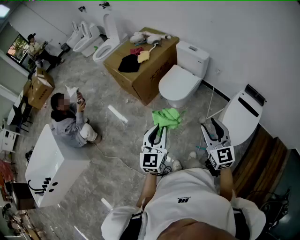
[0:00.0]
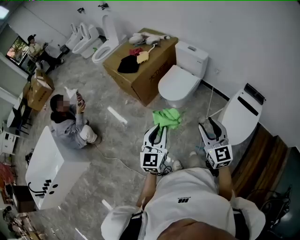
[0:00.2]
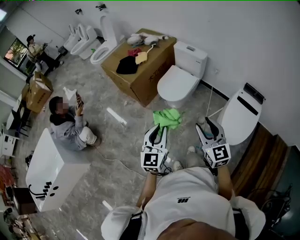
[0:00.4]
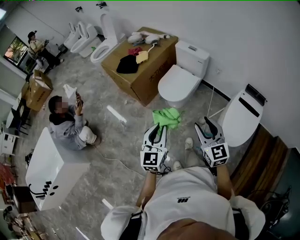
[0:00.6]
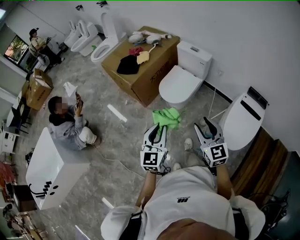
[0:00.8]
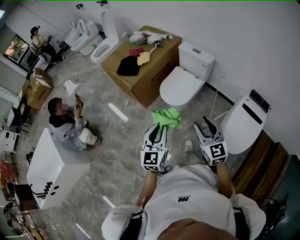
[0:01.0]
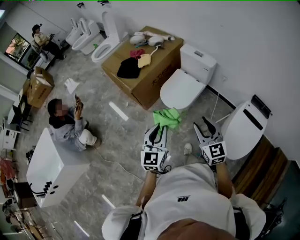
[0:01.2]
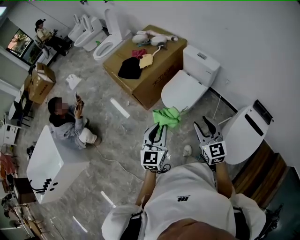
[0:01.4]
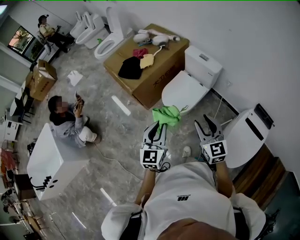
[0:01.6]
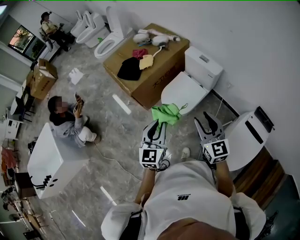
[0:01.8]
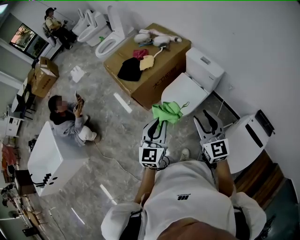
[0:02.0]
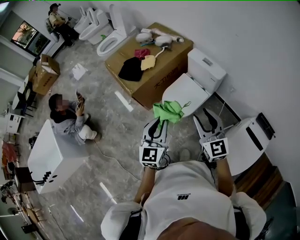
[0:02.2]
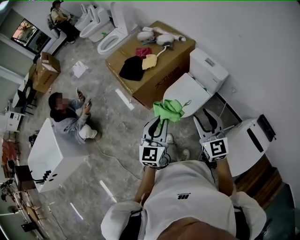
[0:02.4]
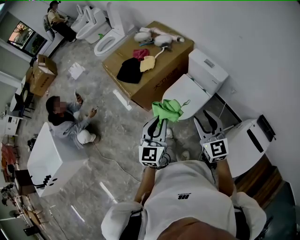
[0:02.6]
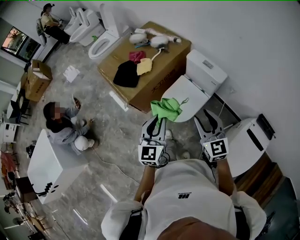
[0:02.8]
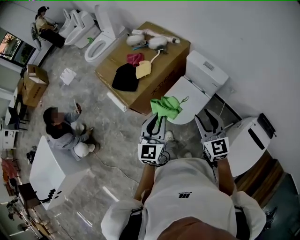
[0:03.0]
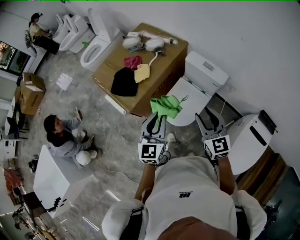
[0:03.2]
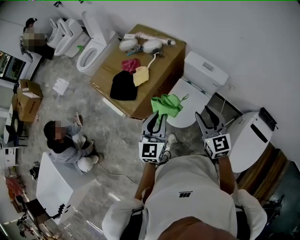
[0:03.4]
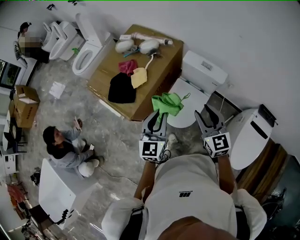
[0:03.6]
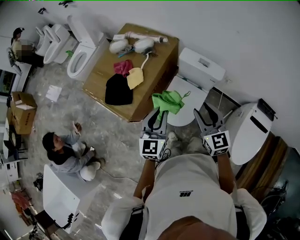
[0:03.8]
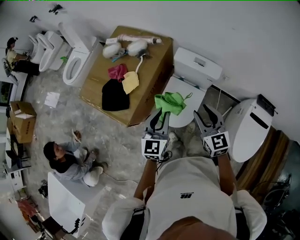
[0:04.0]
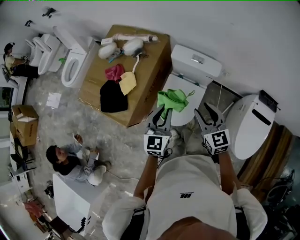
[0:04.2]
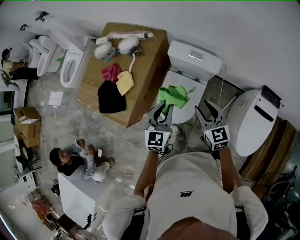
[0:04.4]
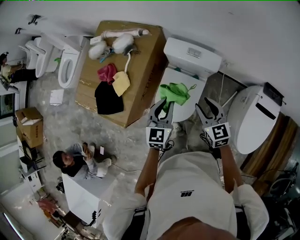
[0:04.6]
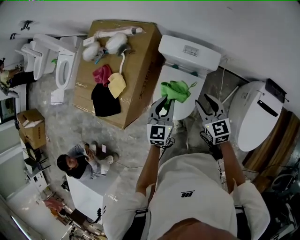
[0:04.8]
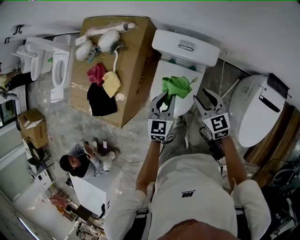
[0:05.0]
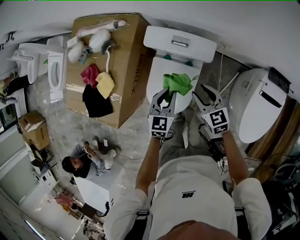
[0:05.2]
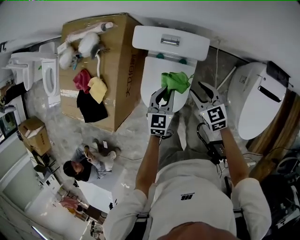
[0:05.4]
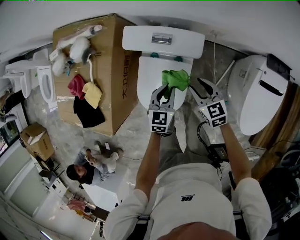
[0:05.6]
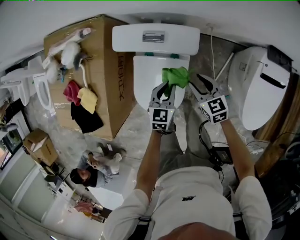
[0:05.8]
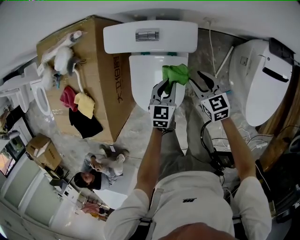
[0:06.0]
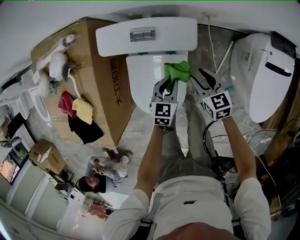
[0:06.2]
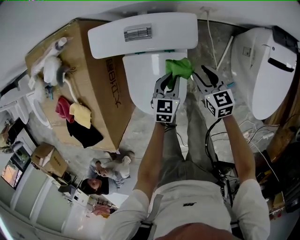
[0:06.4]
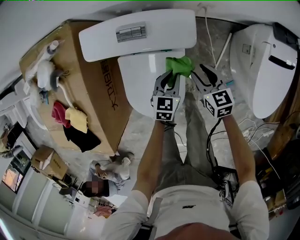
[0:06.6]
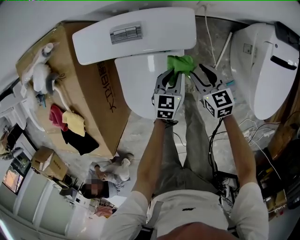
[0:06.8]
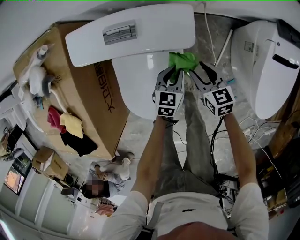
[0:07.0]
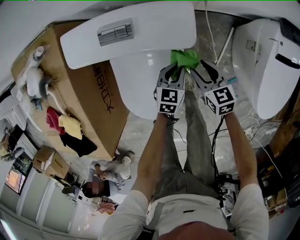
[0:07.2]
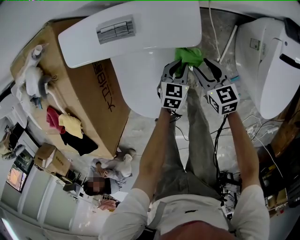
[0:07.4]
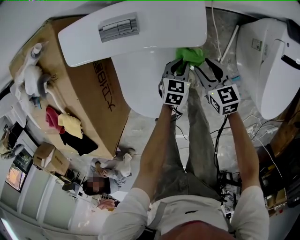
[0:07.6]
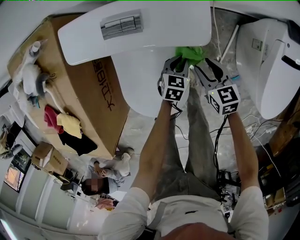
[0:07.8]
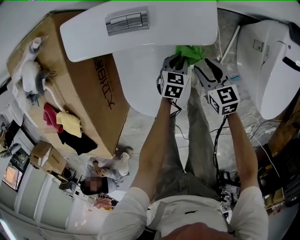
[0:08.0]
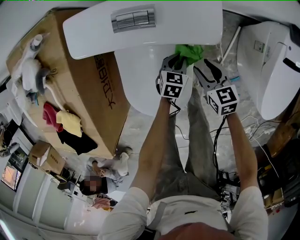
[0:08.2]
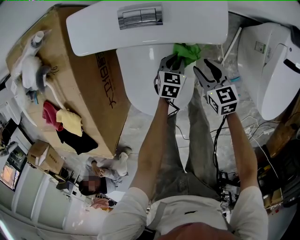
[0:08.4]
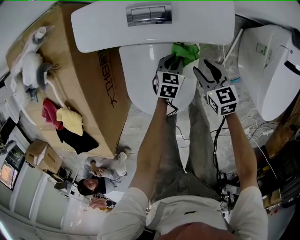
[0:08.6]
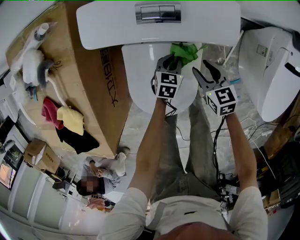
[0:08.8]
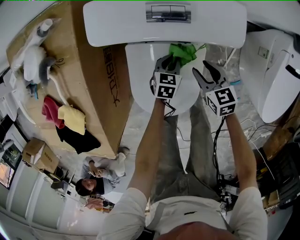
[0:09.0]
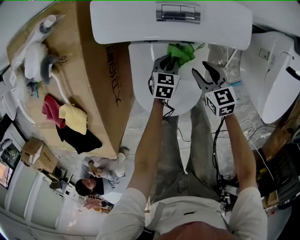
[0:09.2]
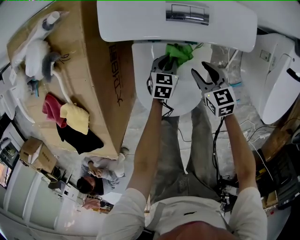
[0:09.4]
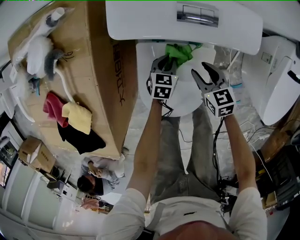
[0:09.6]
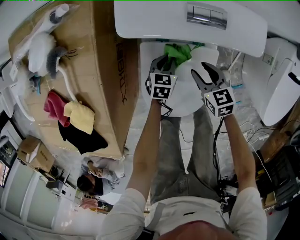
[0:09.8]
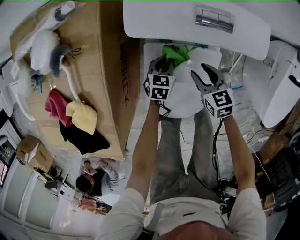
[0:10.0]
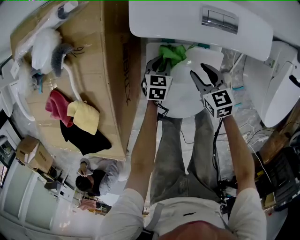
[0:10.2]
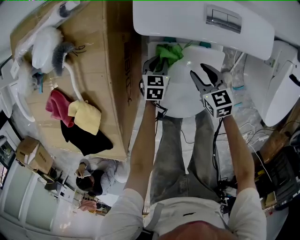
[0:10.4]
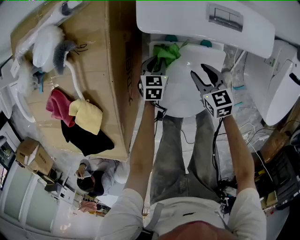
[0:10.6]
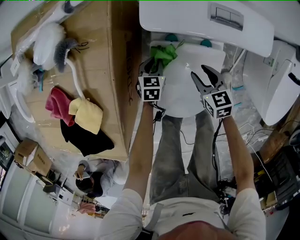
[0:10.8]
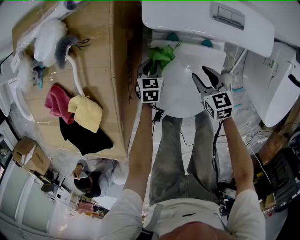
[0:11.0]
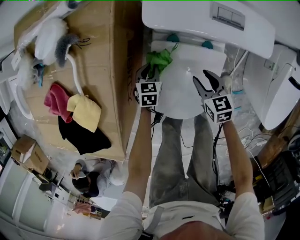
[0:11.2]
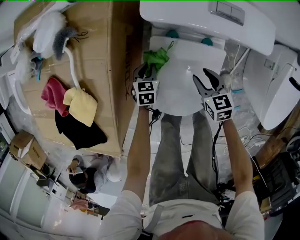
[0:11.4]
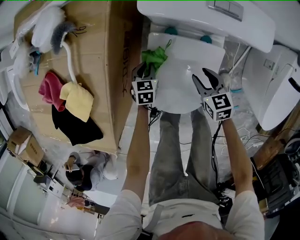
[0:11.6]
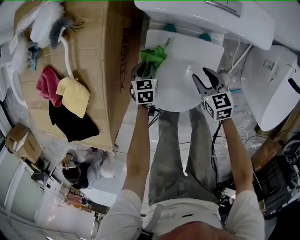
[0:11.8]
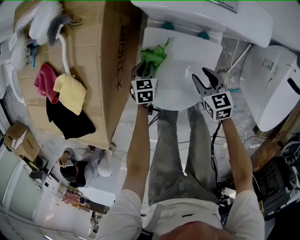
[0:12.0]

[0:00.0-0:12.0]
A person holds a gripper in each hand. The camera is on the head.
0:00.0 to 0:01.6: The two grippers go some 25 cm forward.
0:01.6 to 0:03.0: The two grippers go some 20 cm forward.
0:03.0 to 0:04.4: Both grippers travel together forward and downward, about 20 cm. The left gripper changes its angle by some 20 degrees, while the right gripper rotates about 20 degrees.
0:04.4 to 0:06.0: Both grippers move downward and to the right, about 35 cm. The right gripper changes its angle by some 20 degrees; the left gripper rotates approximately 30 degrees.
0:06.0 to 0:07.6: The two grippers go about 20 cm downward.
0:07.6 to 0:09.0: The grippers both shift to the left by approximately 10 cm.
0:09.0 to 0:10.4: Both grippers move to the left, approximately 15 cm.
0:10.4 to 0:12.0: The left gripper travels backward and to the left by some 10 cm, while the right gripper shifts approximately 5 cm backward.

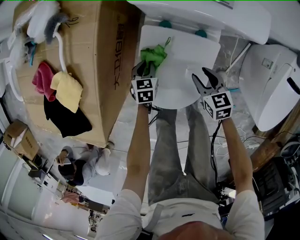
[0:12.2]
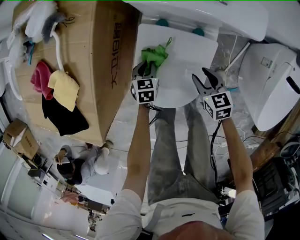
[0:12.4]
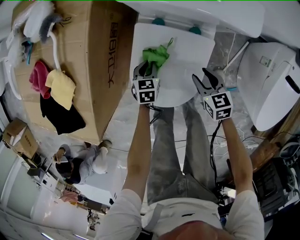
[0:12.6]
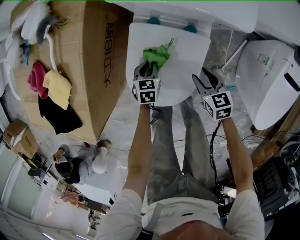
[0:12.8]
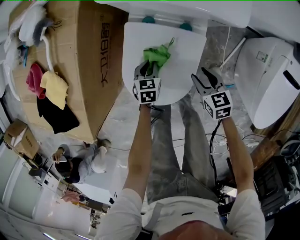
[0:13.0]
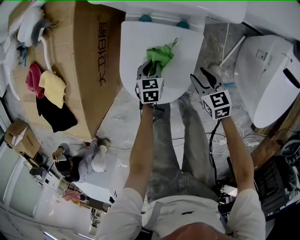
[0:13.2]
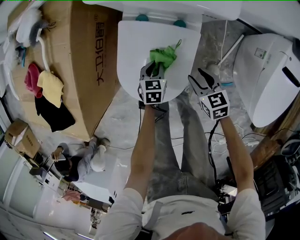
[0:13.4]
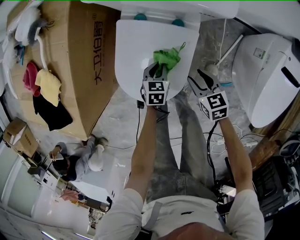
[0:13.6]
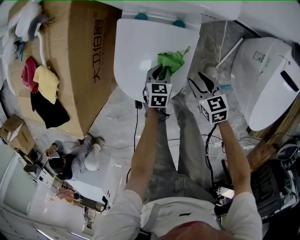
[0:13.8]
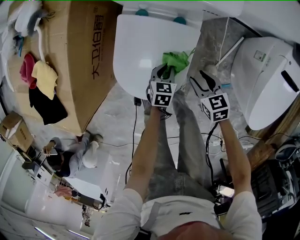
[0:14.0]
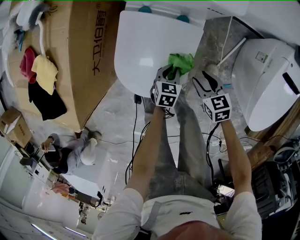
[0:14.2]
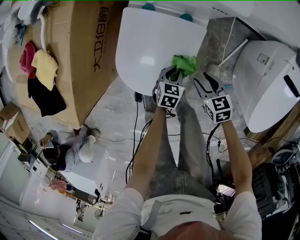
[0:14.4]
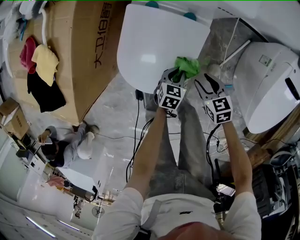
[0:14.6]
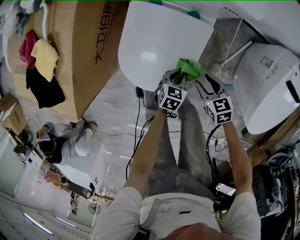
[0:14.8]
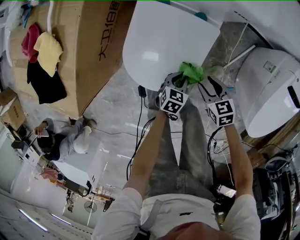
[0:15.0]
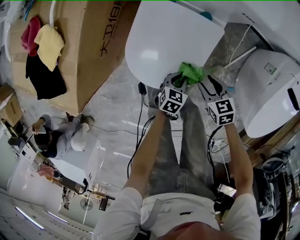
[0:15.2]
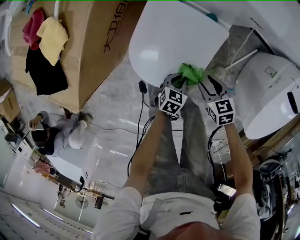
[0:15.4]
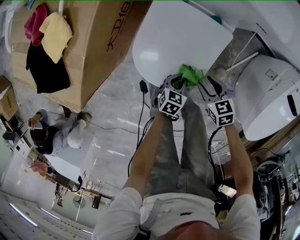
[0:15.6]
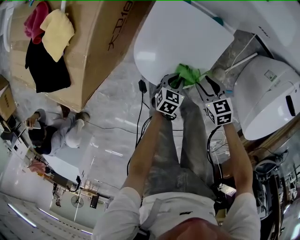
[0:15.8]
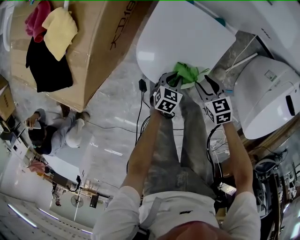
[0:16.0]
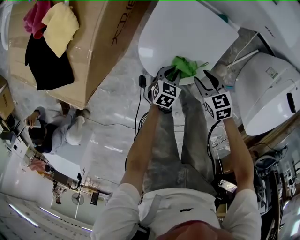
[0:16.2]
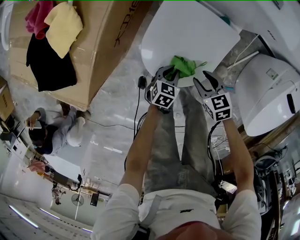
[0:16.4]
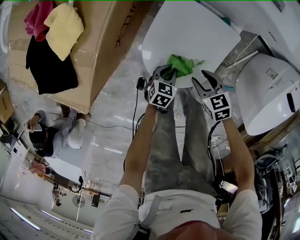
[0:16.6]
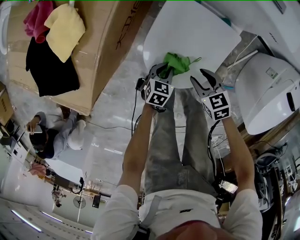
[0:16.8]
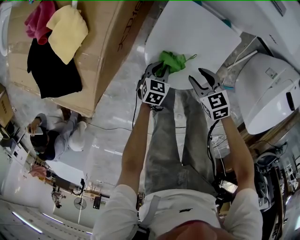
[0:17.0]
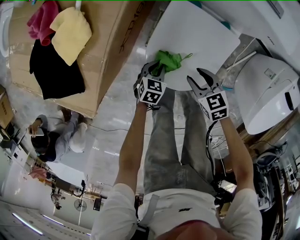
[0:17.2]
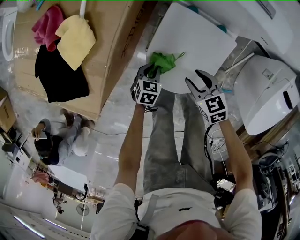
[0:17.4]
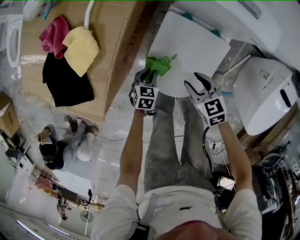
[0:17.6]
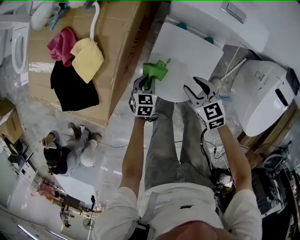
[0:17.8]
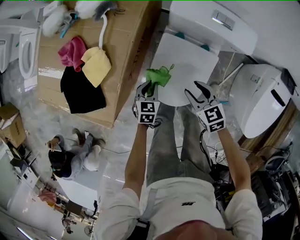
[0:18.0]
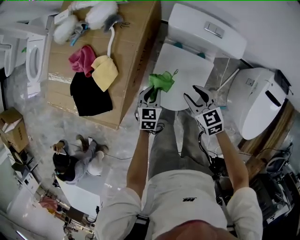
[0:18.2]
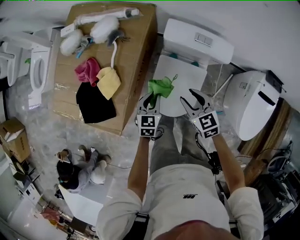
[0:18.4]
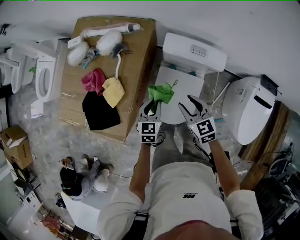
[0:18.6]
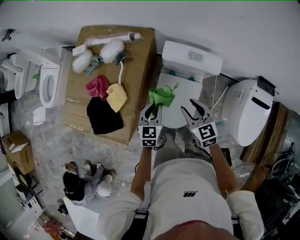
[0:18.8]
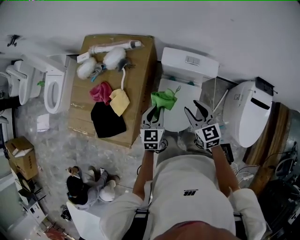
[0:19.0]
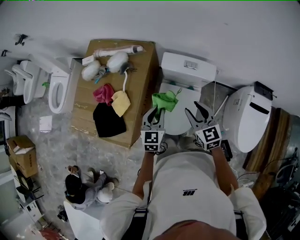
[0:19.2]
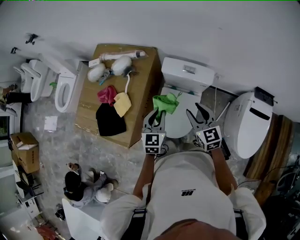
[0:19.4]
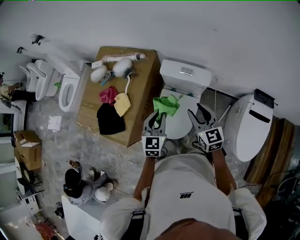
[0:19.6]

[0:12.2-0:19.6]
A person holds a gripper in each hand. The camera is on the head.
0:12.2 to 0:13.6: The left gripper heads to the right and backward, covering about 15 cm. Meanwhile the right gripper travels to the right and backward by some 10 cm.
0:13.6 to 0:15.2: The right gripper moves backward, approximately 5 cm. Meanwhile the left gripper moves backward, about 10 cm.
0:15.2 to 0:16.6: Both grippers move to the left, approximately 10 cm.
0:16.6 to 0:18.2: The grippers both shift upward and forward by about 25 cm.
0:18.2 to 0:19.6: The left gripper moves upward, some 35 cm, and swivels roughly 30 degrees, while the right gripper travels upward and to the right by about 30 cm, and changes its angle by some 30 degrees.

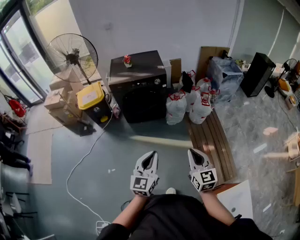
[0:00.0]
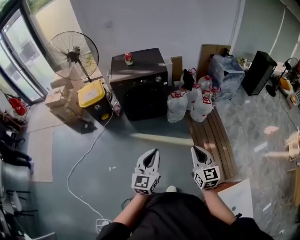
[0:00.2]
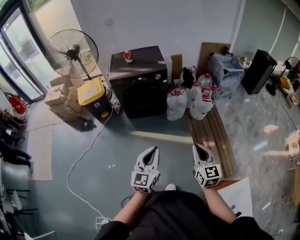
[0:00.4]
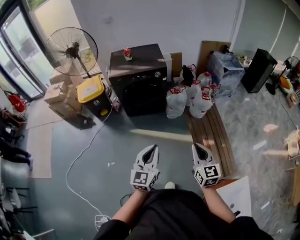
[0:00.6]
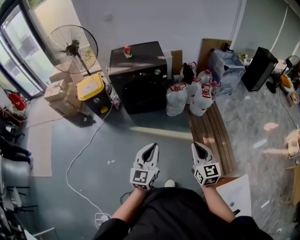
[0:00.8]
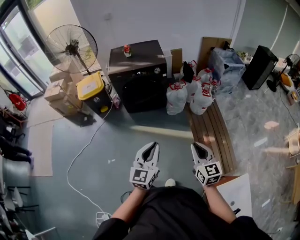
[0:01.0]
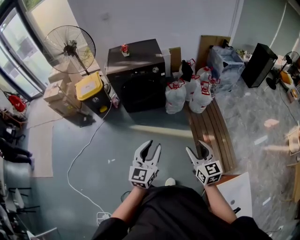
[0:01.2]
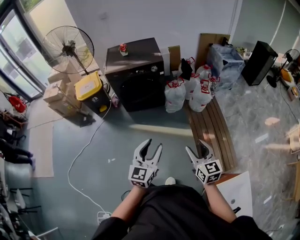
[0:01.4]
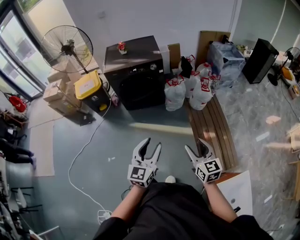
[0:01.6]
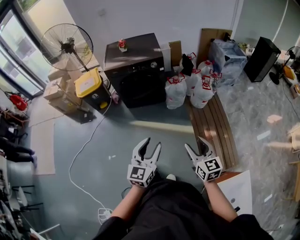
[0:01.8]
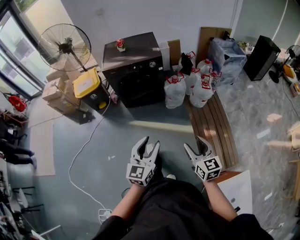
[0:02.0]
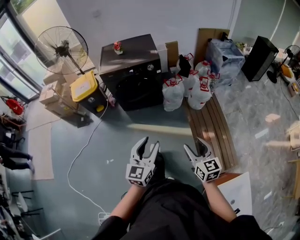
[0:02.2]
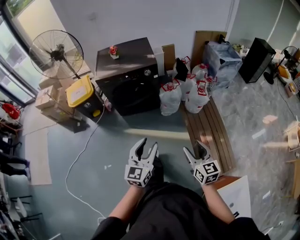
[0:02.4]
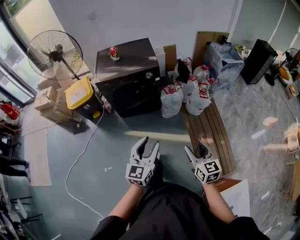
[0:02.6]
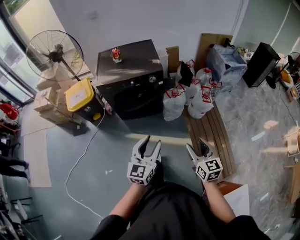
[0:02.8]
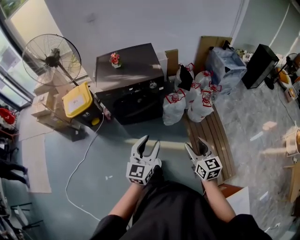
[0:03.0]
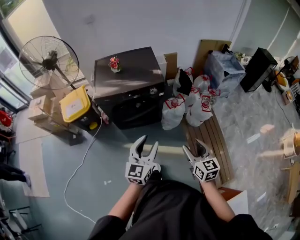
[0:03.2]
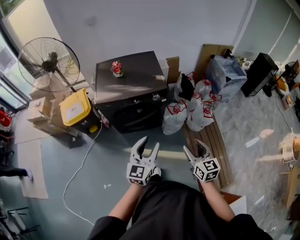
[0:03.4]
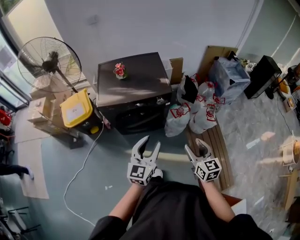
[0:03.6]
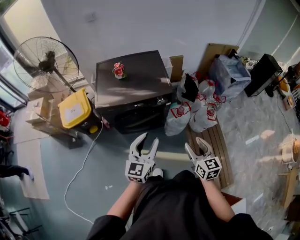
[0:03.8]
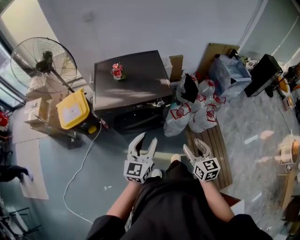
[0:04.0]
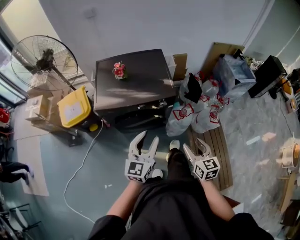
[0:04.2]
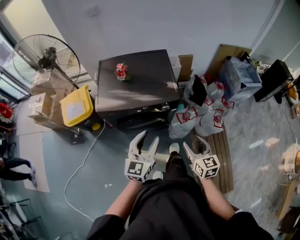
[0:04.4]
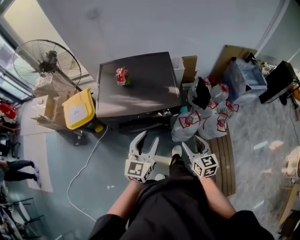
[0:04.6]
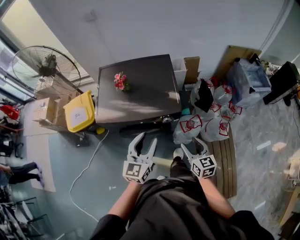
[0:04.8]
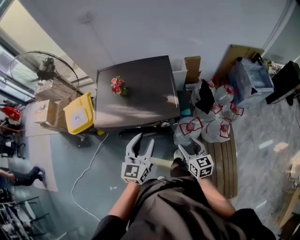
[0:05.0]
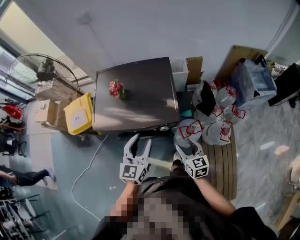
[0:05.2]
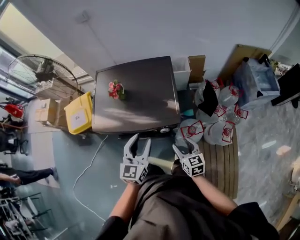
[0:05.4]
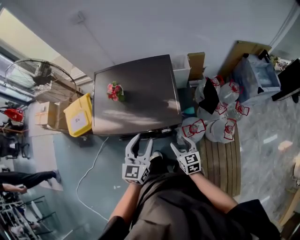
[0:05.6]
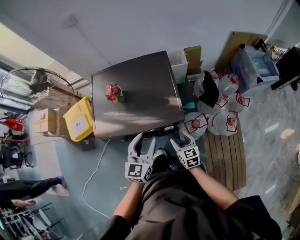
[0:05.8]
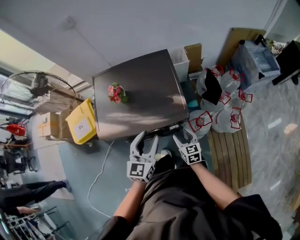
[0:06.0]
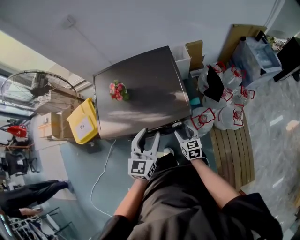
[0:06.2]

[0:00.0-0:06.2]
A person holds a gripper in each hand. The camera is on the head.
0:00.0 to 0:01.6: The left gripper shifts by approximately 5 cm, and opens its fingers; the right gripper moves to the right, some 5 cm, and opens up.
0:01.6 to 0:03.2: The two grippers go about 30 cm forward.
0:03.2 to 0:04.6: Both grippers move forward, approximately 30 cm.
0:04.6 to 0:06.2: The left gripper heads forward and downward, covering approximately 15 cm, while the right gripper is displaced downward and forward by approximately 25 cm.
